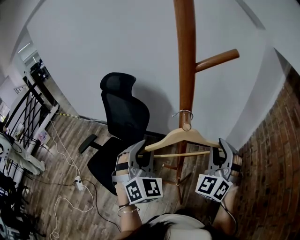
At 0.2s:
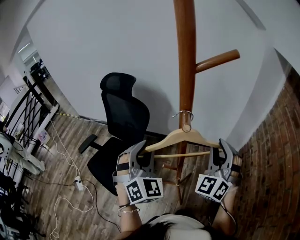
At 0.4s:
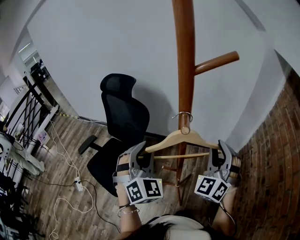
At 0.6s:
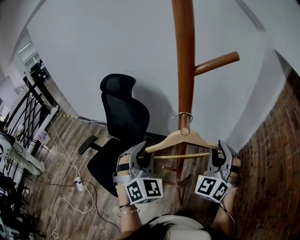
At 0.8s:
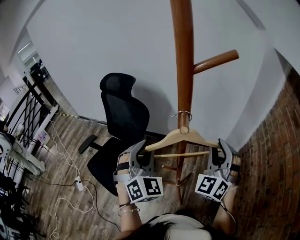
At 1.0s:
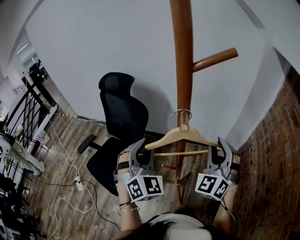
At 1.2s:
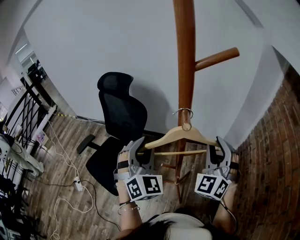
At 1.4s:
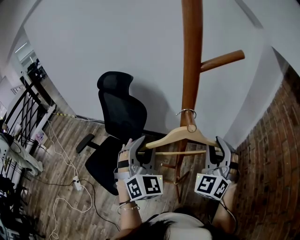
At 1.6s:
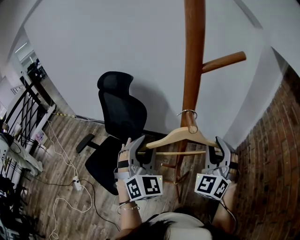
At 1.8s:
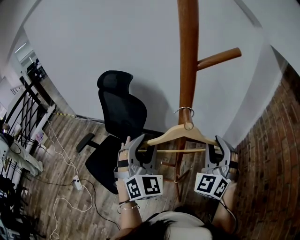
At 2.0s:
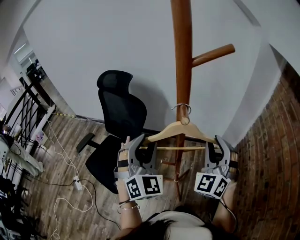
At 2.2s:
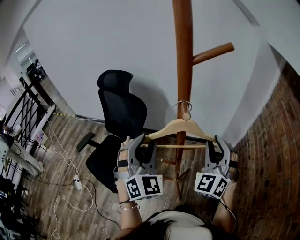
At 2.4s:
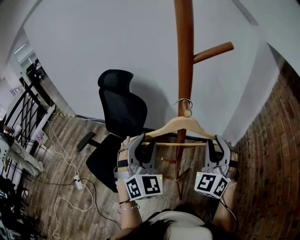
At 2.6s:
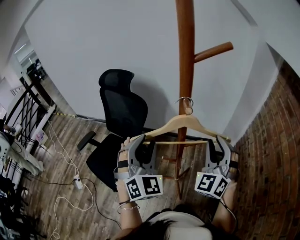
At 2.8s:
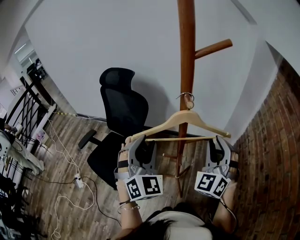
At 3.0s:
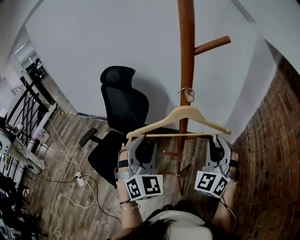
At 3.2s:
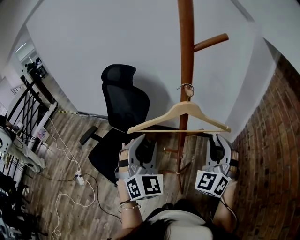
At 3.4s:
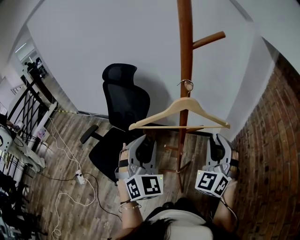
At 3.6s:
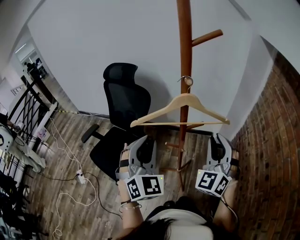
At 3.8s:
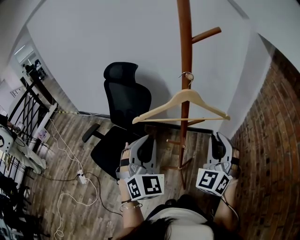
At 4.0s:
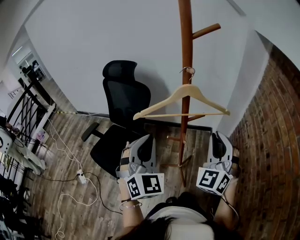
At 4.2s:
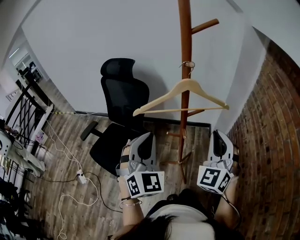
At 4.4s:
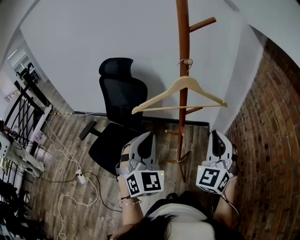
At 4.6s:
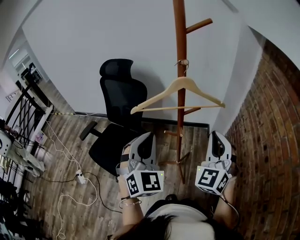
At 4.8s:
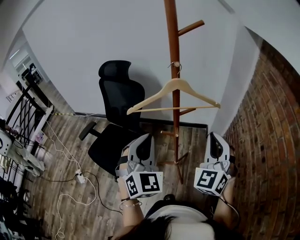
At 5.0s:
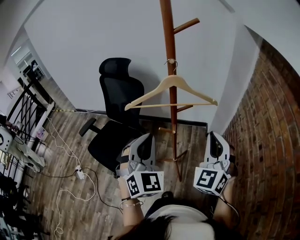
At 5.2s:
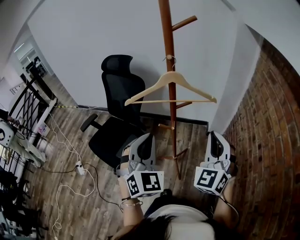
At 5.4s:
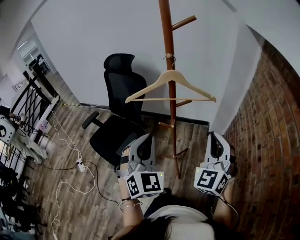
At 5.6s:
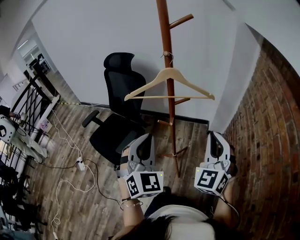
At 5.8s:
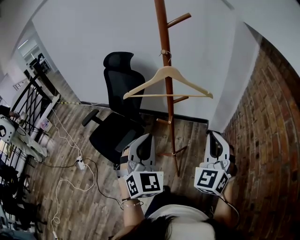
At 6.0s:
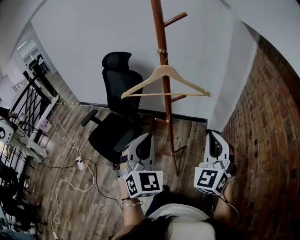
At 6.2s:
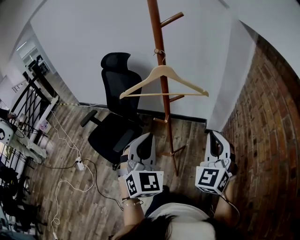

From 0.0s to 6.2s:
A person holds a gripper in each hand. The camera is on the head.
From 0.0s to 1.6s: There are only small adjustments of the grippers.
From 1.6s to 3.2s: Both grippers travel together backward, approximately 10 cm.
From 3.2s to 4.6s: Both grippers travel together backward, roughly 10 cm. The left gripper closes its fingers.
From 4.6s to 6.2s: Both grippers travel together to the right and backward, some 10 cm.

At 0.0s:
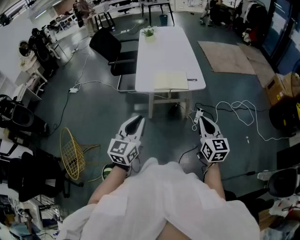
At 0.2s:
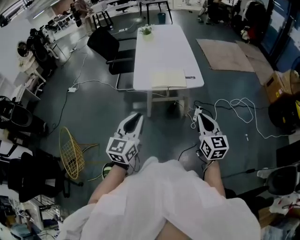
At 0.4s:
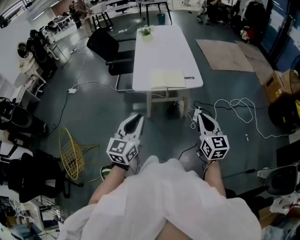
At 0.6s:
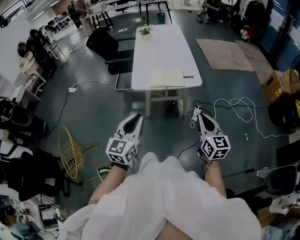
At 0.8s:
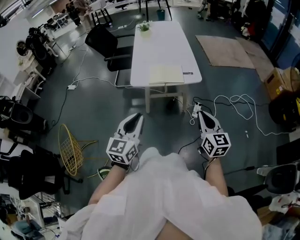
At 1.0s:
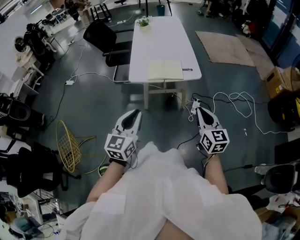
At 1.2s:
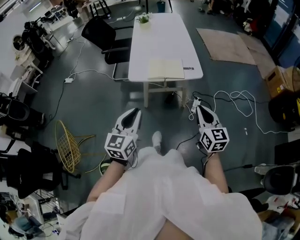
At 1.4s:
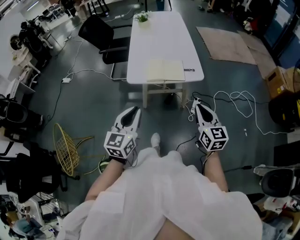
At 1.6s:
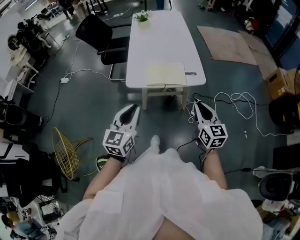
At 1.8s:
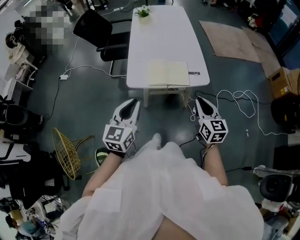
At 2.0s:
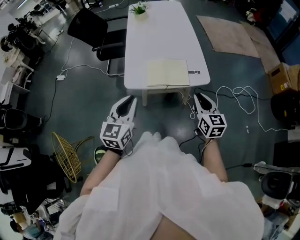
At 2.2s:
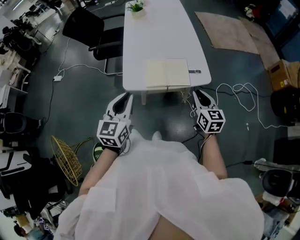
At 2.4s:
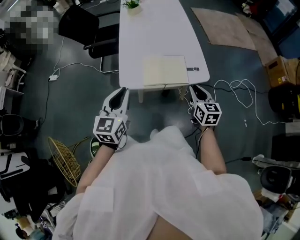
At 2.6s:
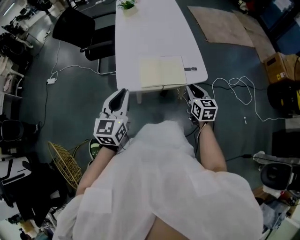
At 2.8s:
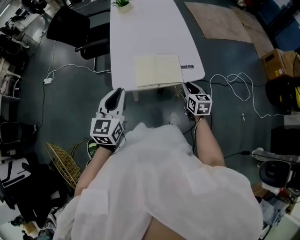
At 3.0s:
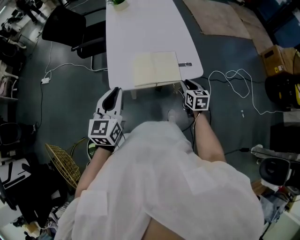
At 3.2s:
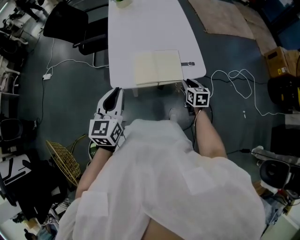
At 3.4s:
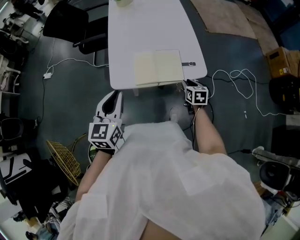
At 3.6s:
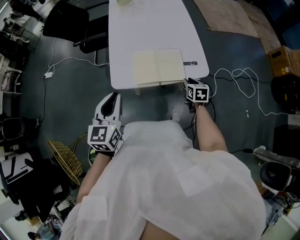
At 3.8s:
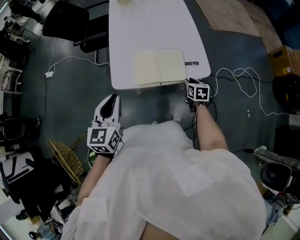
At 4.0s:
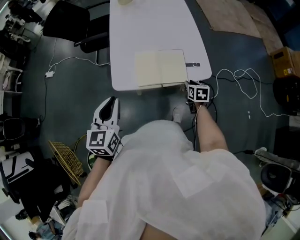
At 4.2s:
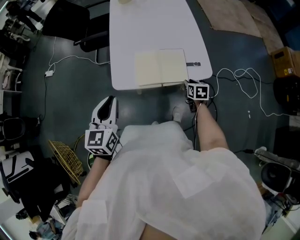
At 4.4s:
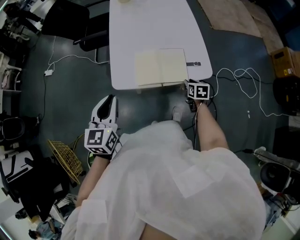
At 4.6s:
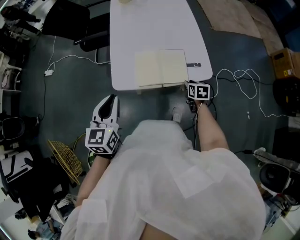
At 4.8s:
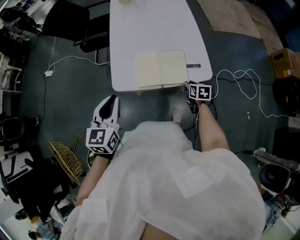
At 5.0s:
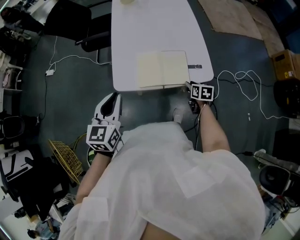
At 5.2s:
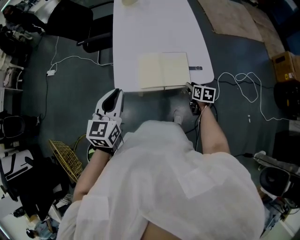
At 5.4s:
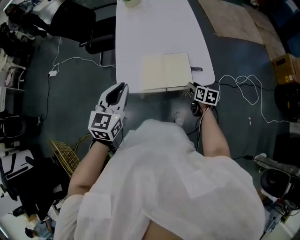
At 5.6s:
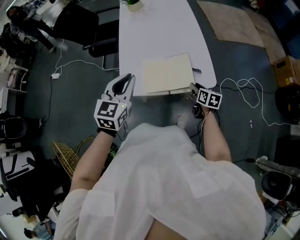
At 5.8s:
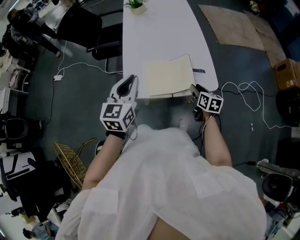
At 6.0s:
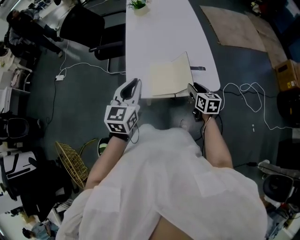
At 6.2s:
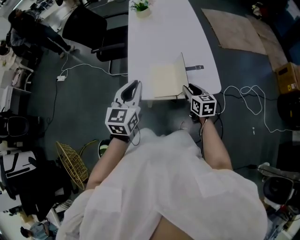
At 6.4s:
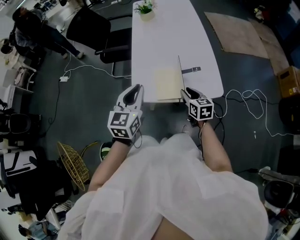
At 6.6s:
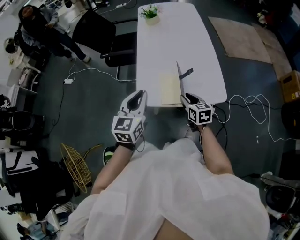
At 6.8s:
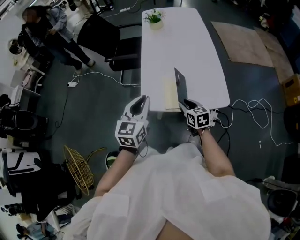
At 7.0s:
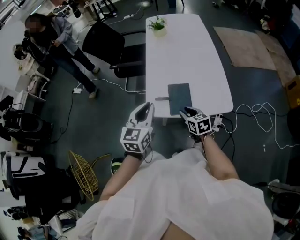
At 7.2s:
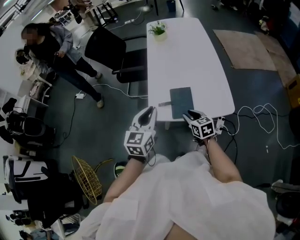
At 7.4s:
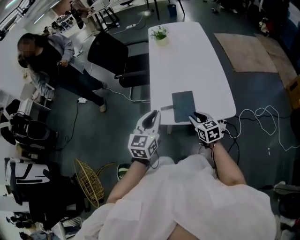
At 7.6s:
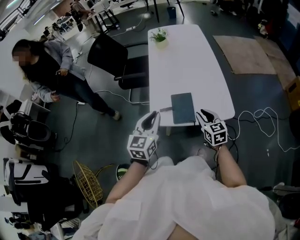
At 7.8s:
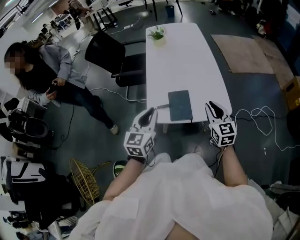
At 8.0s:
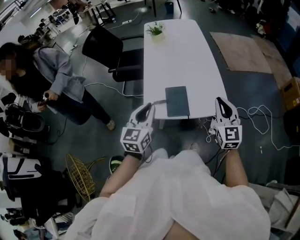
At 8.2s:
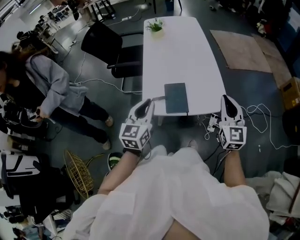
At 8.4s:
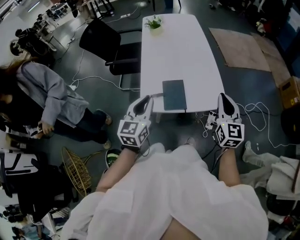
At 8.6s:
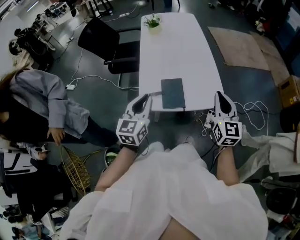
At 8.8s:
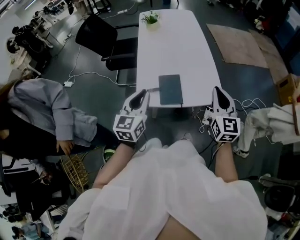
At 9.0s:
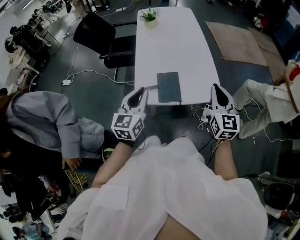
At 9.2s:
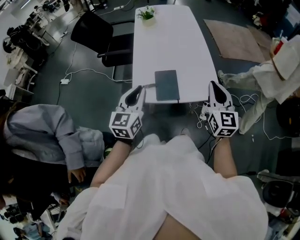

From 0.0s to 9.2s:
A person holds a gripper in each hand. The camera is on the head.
From 0.0s to 1.6s: The two grippers go approximately 15 cm forward.
From 1.6s to 3.0s: The left gripper is displaced forward by some 20 cm. Meanwhile the right gripper travels forward and downward by approximately 30 cm, and turns by about 30 degrees.
From 3.0s to 4.6s: The right gripper heads downward, covering approximately 10 cm.
From 4.6s to 6.2s: The right gripper moves upward and to the left, about 20 cm, and changes its angle by about 20 degrees. The left gripper goes about 5 cm forward.
From 6.2s to 7.6s: The right gripper heads upward, covering approximately 5 cm.
From 7.6s to 9.2s: The right gripper goes some 15 cm upward and to the right, changes its angle by some 30 degrees, and closes.

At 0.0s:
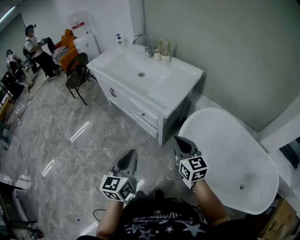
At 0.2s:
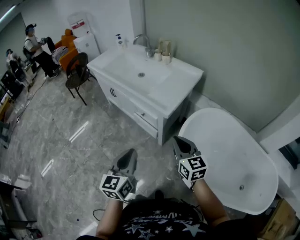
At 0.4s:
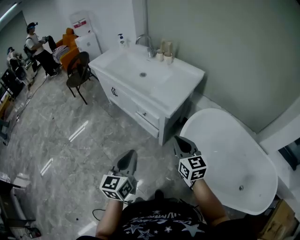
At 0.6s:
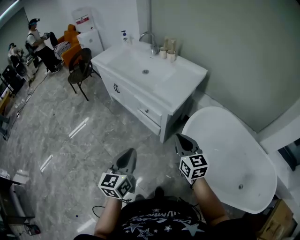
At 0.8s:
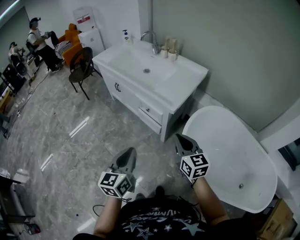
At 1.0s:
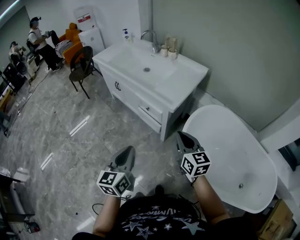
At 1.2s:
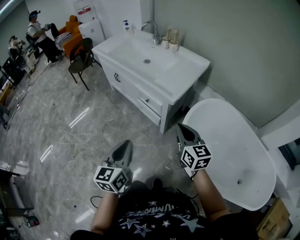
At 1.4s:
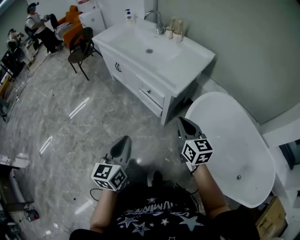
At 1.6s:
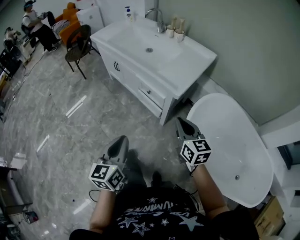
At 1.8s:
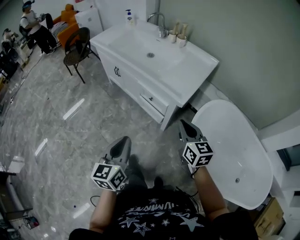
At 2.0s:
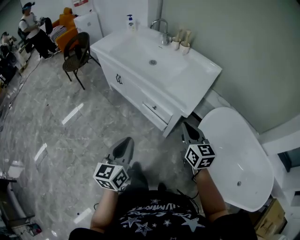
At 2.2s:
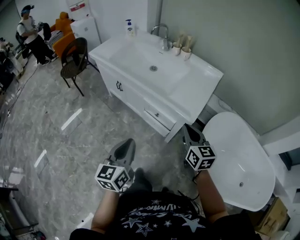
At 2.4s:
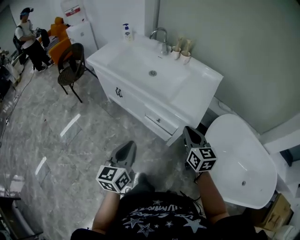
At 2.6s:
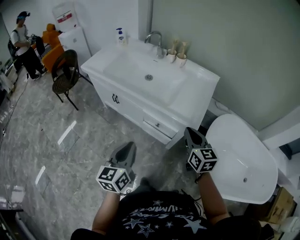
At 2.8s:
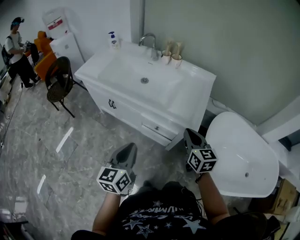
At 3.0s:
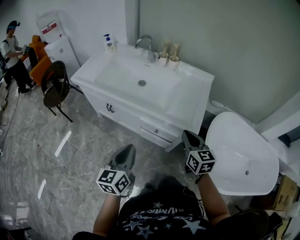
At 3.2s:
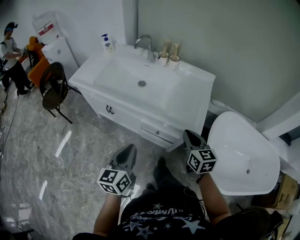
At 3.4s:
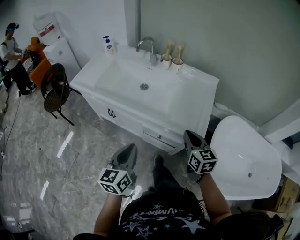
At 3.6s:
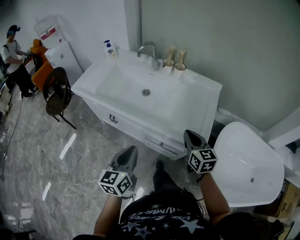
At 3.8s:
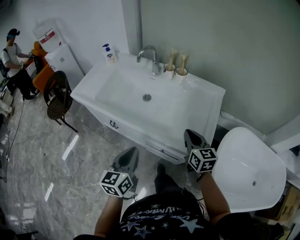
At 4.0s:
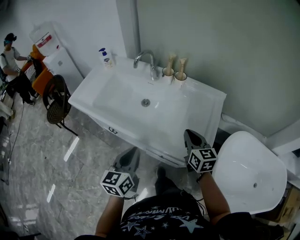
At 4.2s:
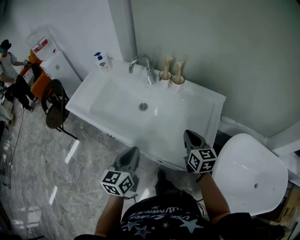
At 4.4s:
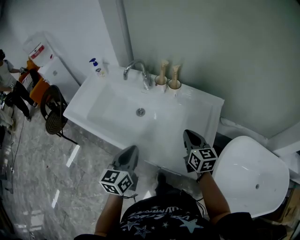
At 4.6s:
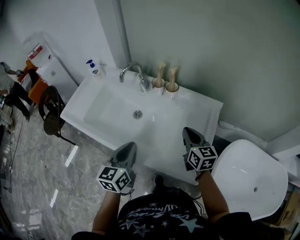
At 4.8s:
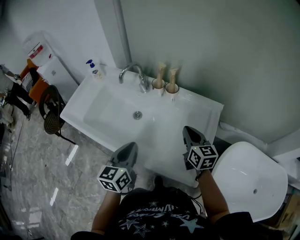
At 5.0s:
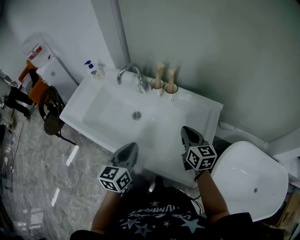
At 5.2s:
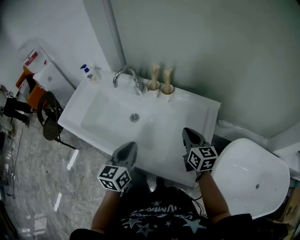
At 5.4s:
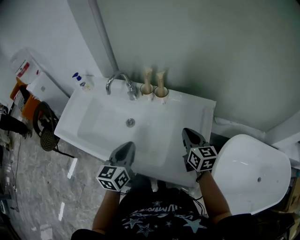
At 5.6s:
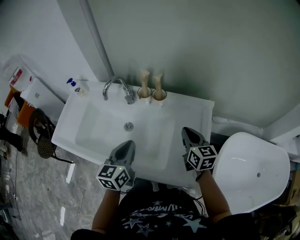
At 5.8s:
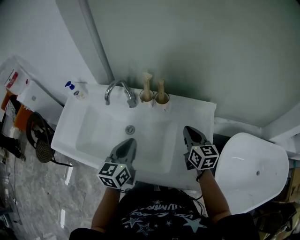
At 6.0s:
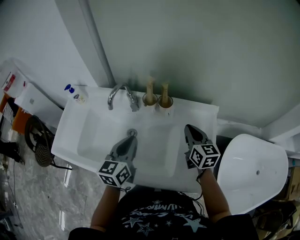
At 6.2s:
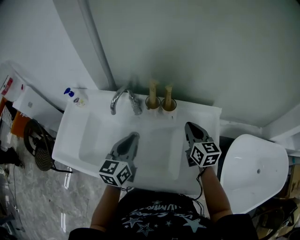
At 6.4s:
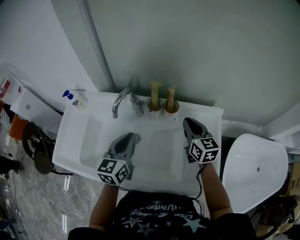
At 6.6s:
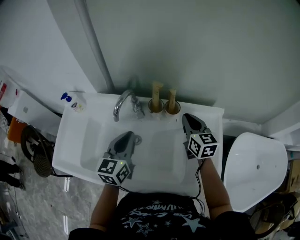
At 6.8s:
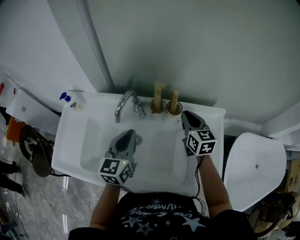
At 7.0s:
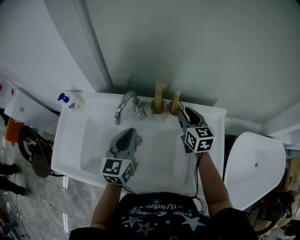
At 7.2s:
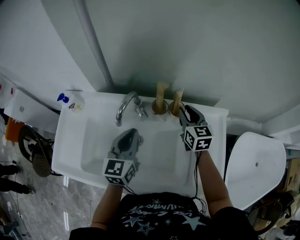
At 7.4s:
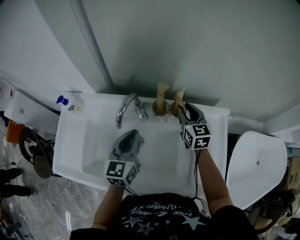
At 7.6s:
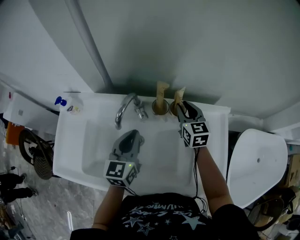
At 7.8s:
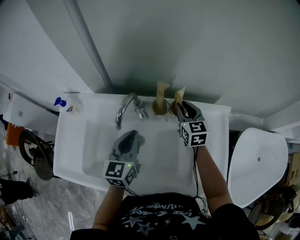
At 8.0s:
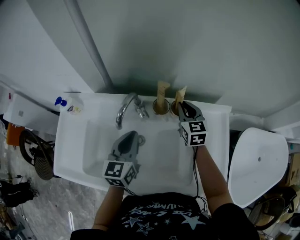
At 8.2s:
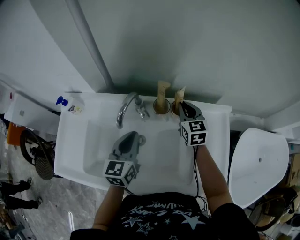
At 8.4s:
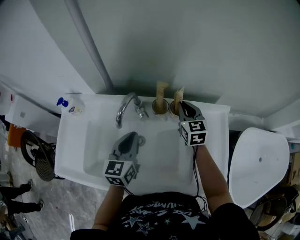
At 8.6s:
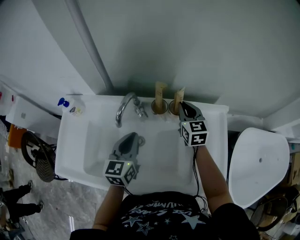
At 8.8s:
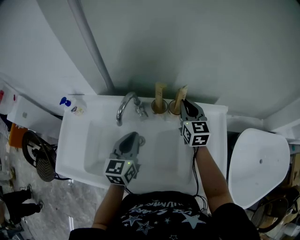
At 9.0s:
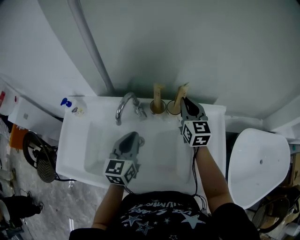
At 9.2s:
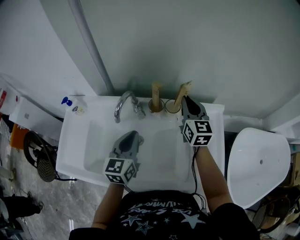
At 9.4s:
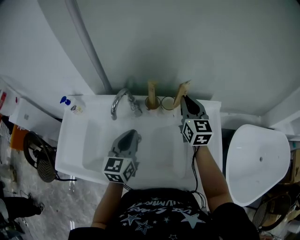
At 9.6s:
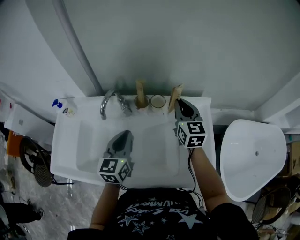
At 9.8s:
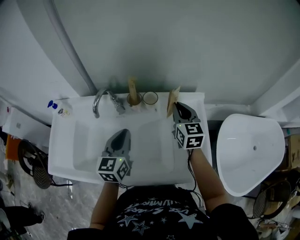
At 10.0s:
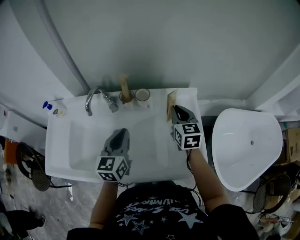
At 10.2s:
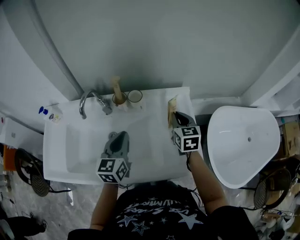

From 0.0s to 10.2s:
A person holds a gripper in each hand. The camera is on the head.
From 0.0s to 1.4s: The left gripper shifts roughly 5 cm to the left.
From 1.4s to 3.0s: Both grippers move forward and to the left, approximately 30 cm. The right gripper rotates roughly 20 degrees. Meanwhile the left gripper changes its angle by roughly 20 degrees.
From 3.0s to 4.4s: Both grippers move forward, approximately 25 cm.
From 4.4s to 5.8s: The right gripper moves forward, approximately 10 cm; the left gripper goes some 15 cm forward.
From 5.8s to 7.2s: Both grippers travel together forward and to the left, roughly 15 cm. The right gripper opens its fingers.
From 7.2s to 8.8s: The grippers move only a little.
From 8.8s to 10.2s: The left gripper goes roughly 15 cm to the right and backward; the right gripper shifts about 20 cm to the right and backward.
